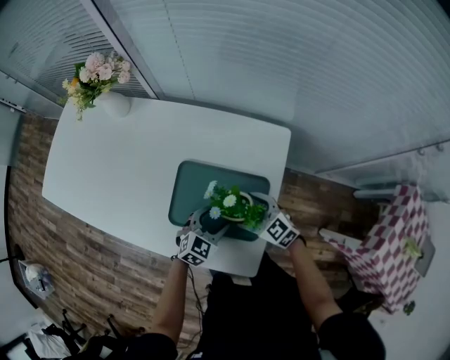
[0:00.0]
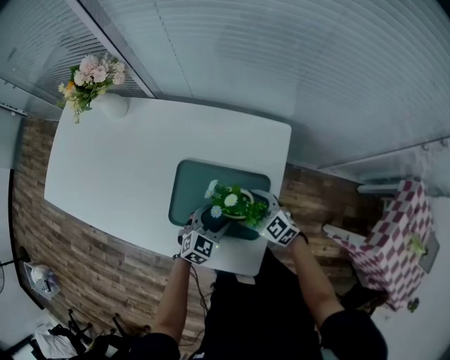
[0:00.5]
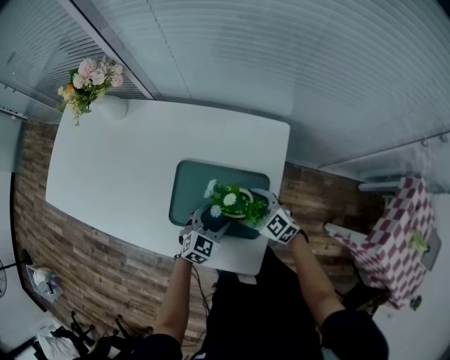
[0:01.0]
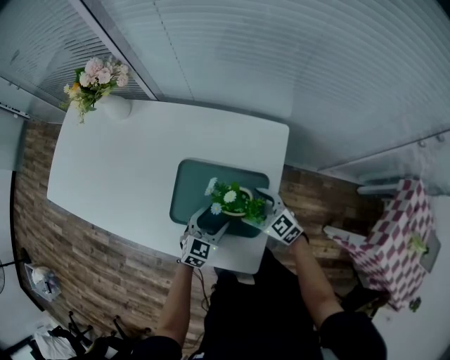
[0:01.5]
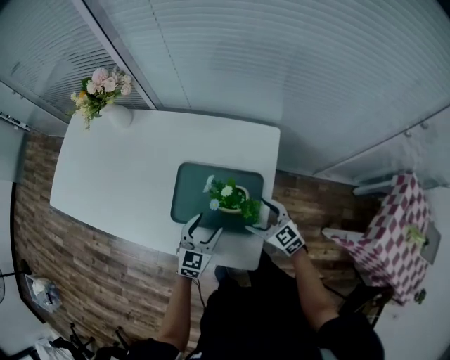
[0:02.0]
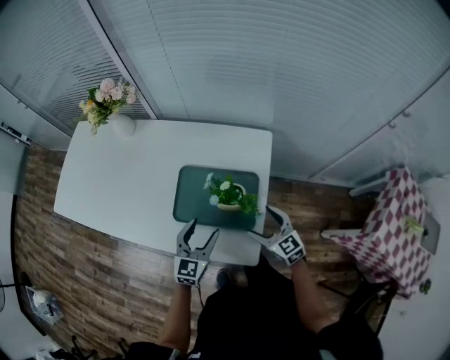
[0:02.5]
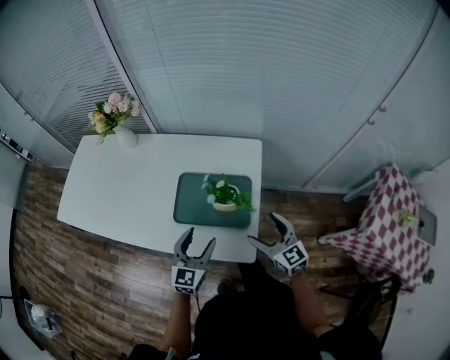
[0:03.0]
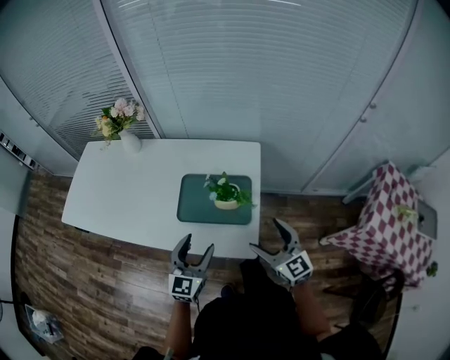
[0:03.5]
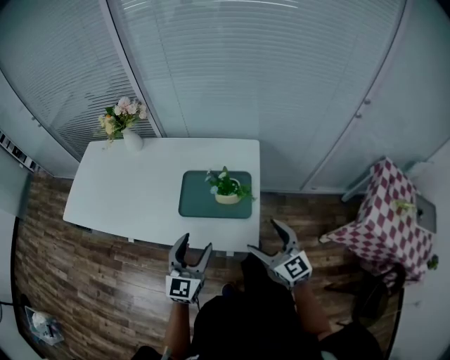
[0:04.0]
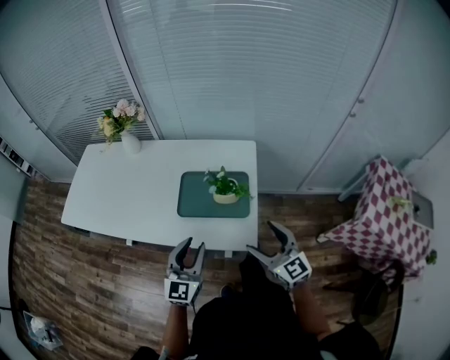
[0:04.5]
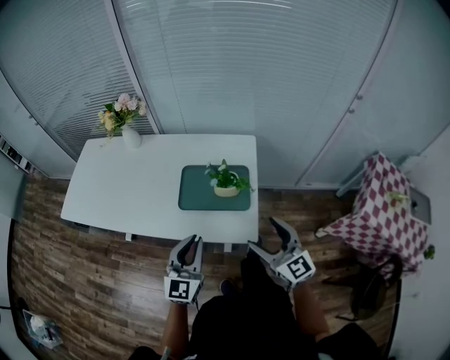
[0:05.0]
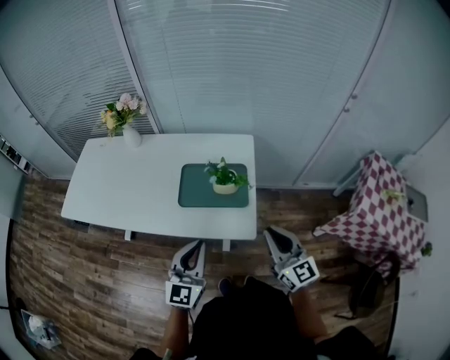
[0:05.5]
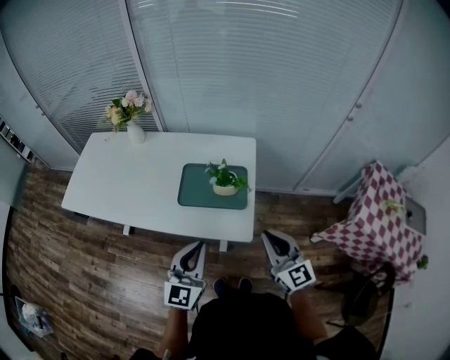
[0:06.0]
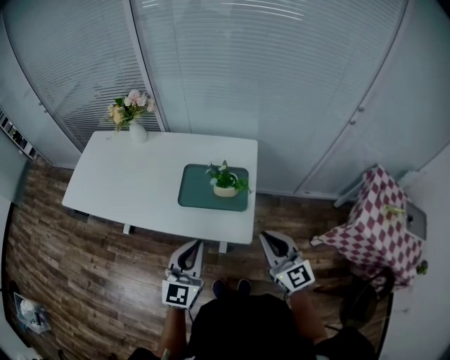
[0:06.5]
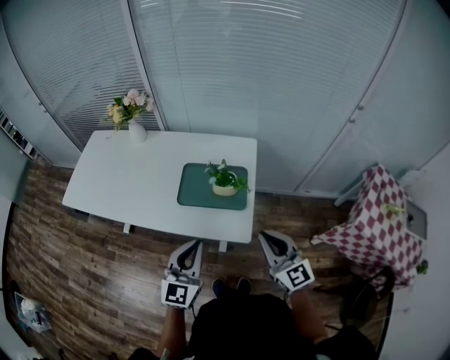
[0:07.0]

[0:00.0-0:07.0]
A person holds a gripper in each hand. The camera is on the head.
0:00.0 to 0:02.0: The left gripper moves approximately 5 cm; the right gripper changes place by approximately 5 cm.
0:02.0 to 0:03.5: The grippers both shift upward and backward by about 20 cm. The right gripper rotates approximately 30 degrees.
0:03.5 to 0:05.0: The left gripper moves upward and backward, about 10 cm, and closes up. The right gripper is displaced backward by about 5 cm.
0:05.0 to 0:07.0: The right gripper closes; the left gripper ends up about 5 cm from where it was.

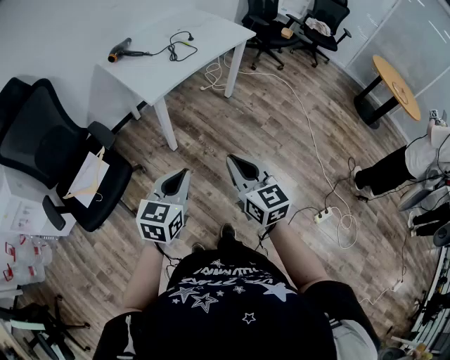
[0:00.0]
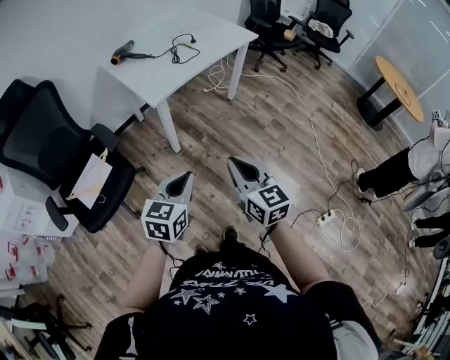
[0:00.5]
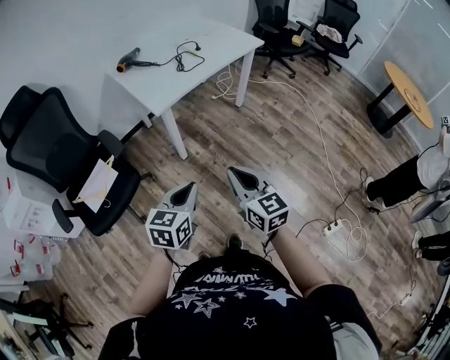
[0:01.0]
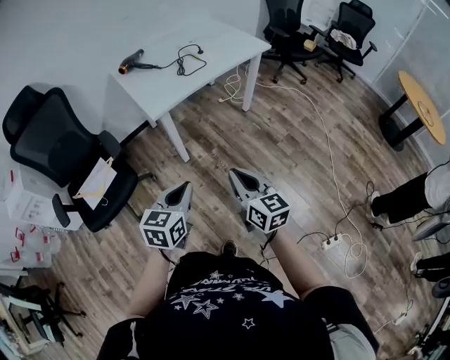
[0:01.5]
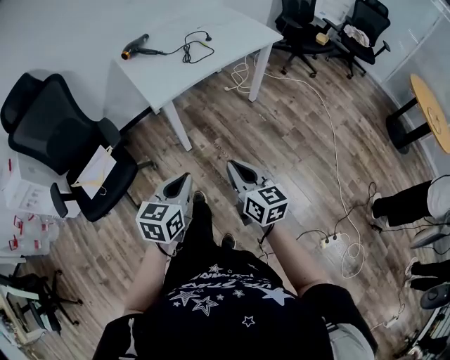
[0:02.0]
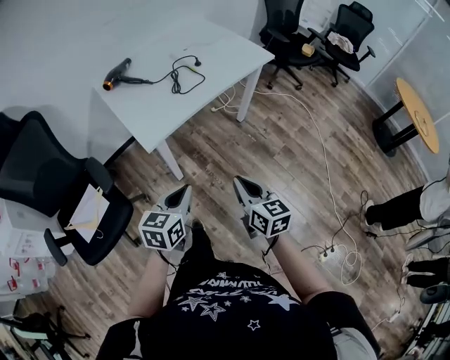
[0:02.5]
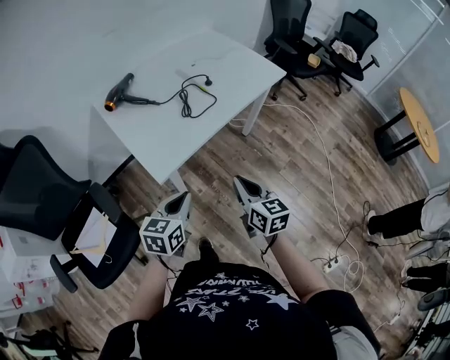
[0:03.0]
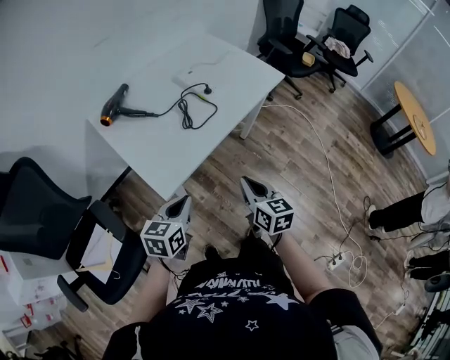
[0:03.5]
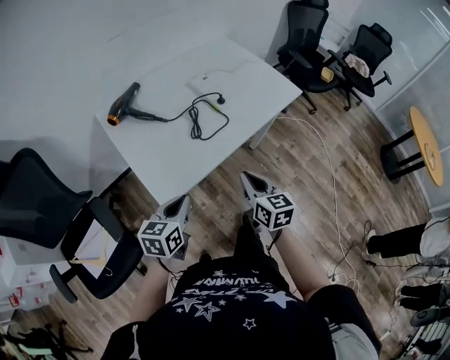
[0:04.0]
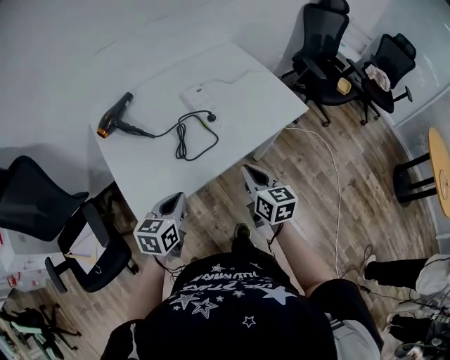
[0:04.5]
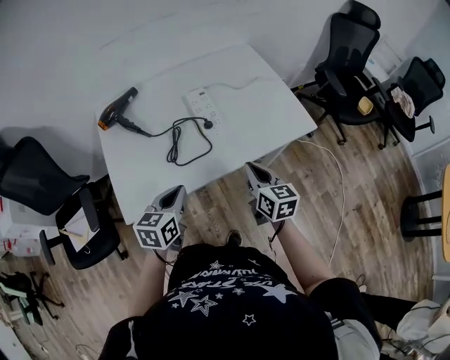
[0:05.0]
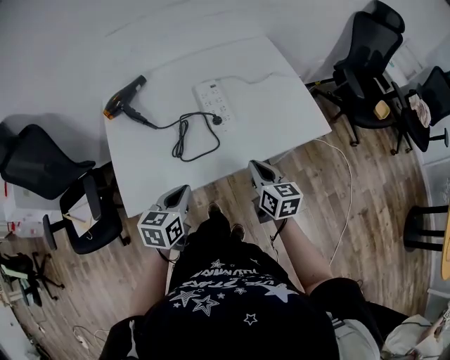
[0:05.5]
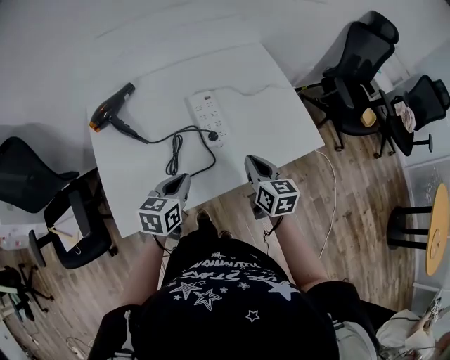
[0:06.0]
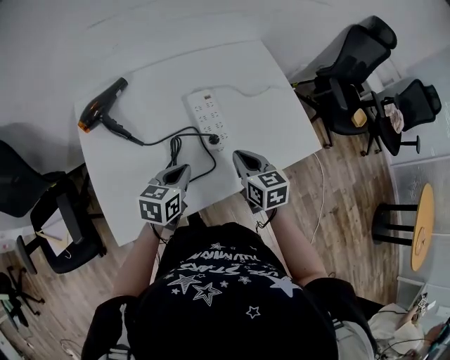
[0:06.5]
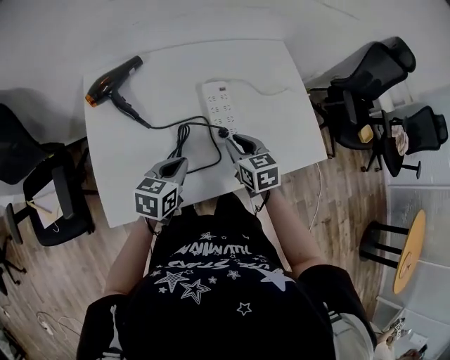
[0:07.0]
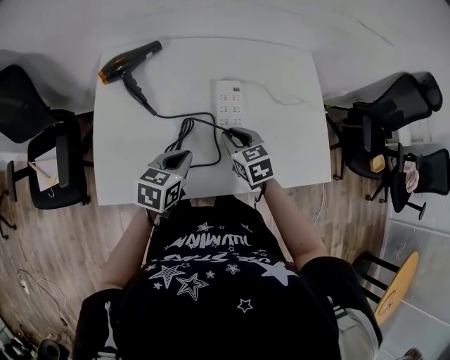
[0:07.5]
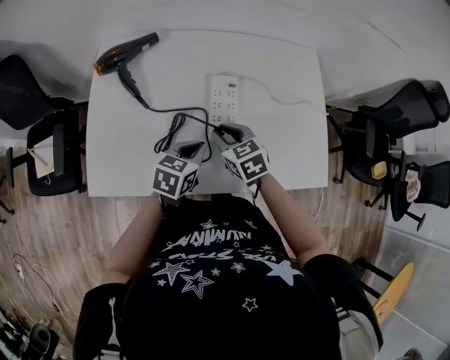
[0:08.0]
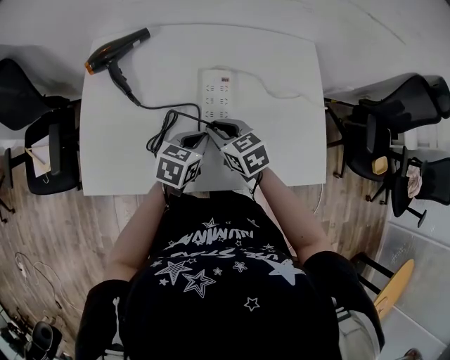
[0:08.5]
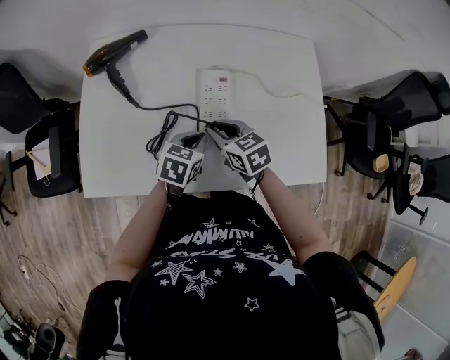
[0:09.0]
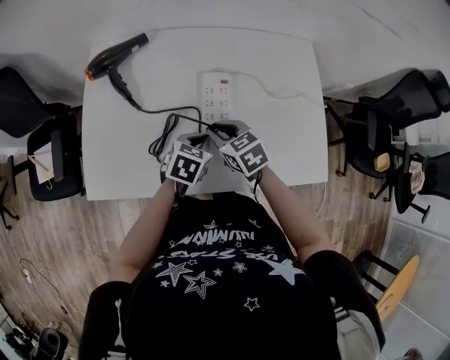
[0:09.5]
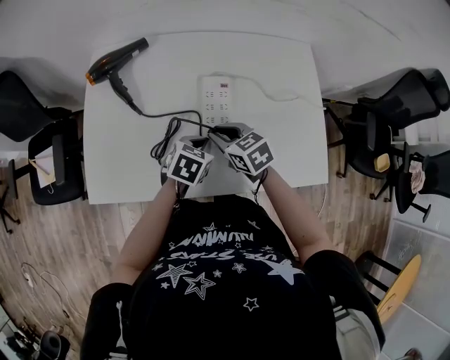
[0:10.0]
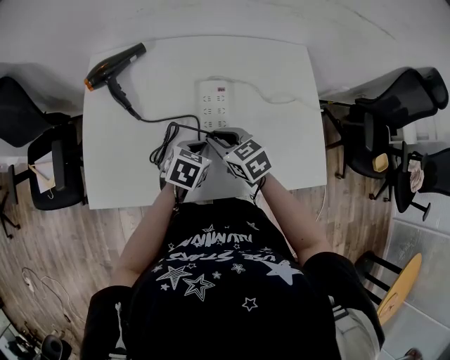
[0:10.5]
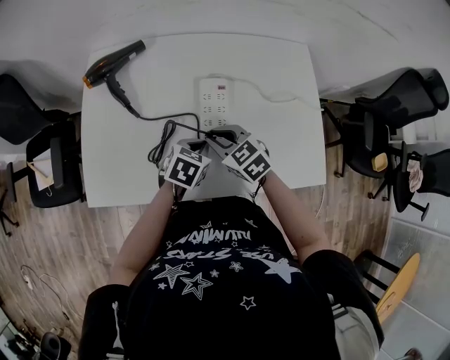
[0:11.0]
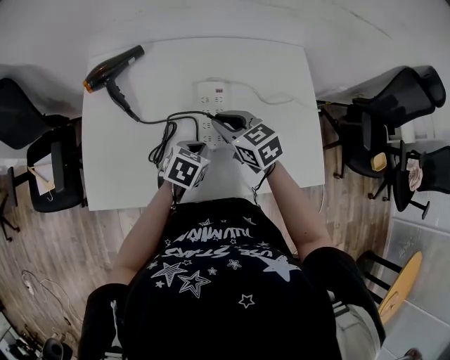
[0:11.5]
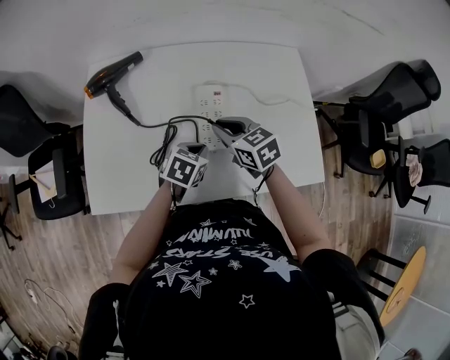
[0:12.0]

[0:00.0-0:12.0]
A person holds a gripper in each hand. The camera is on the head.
0:00.0 to 0:02.0: The left gripper moves forward and to the right, about 10 cm, while the right gripper heads forward, downward and to the right, covering roughly 15 cm.
0:02.0 to 0:04.0: Both grippers move forward, about 40 cm.
0:04.0 to 0:06.0: Both grippers move forward and to the right, approximately 30 cm.
0:06.0 to 0:08.0: The right gripper shifts some 15 cm forward, to the left and downward, changes its angle by about 50 degrees, and opens. The left gripper travels forward, to the right and downward by about 10 cm.
0:08.0 to 0:10.0: The left gripper shifts by roughly 5 cm.
0:10.0 to 0:12.0: The right gripper is displaced upward by roughly 5 cm.

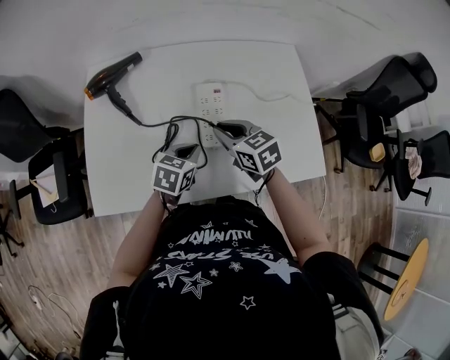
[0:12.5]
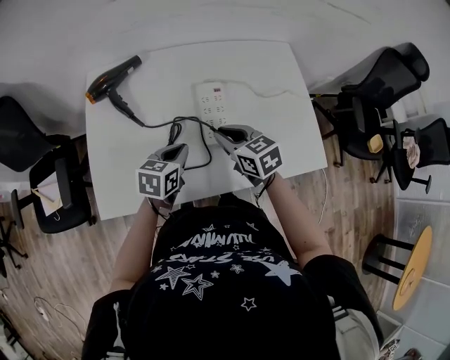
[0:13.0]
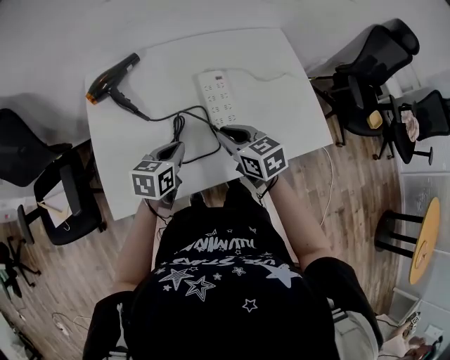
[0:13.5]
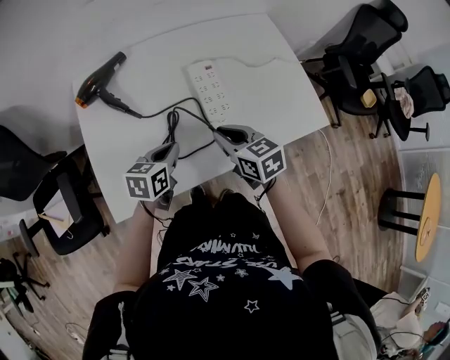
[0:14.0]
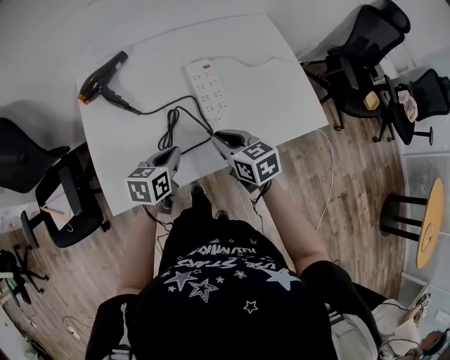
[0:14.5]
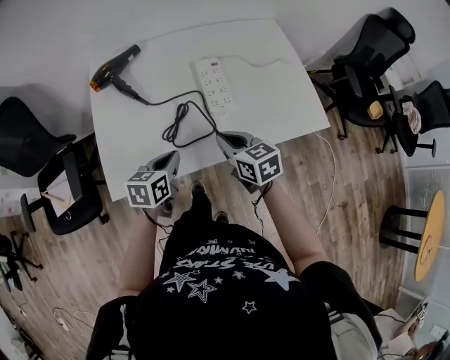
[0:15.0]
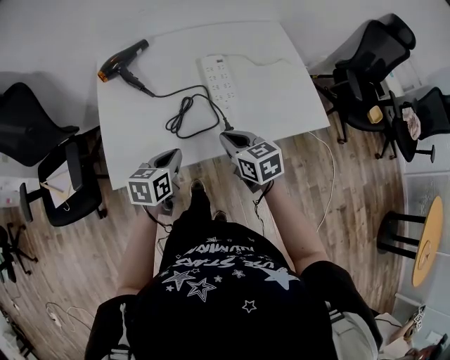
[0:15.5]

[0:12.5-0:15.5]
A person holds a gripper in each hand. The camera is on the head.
0:12.5 to 0:14.0: The left gripper heads to the left, covering some 10 cm. The right gripper goes some 10 cm backward.
0:14.0 to 0:15.5: The two grippers go approximately 10 cm backward.

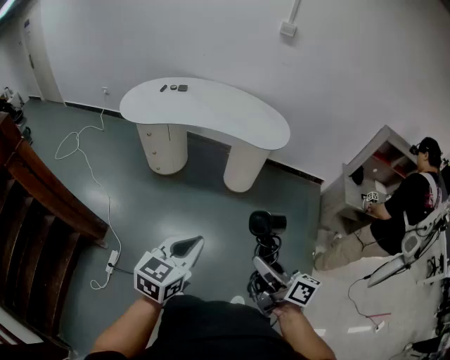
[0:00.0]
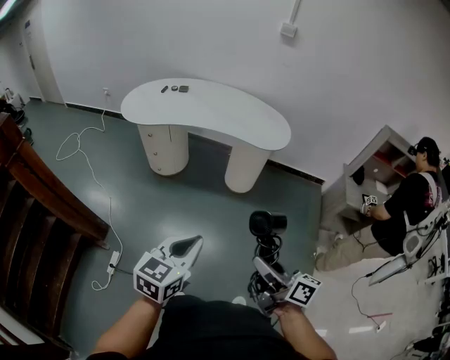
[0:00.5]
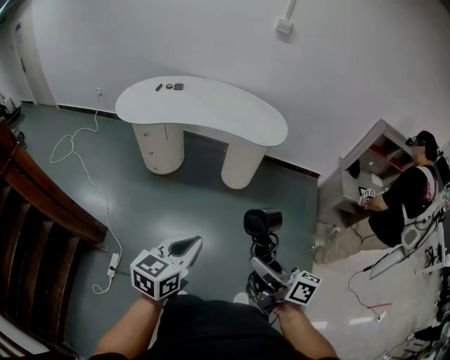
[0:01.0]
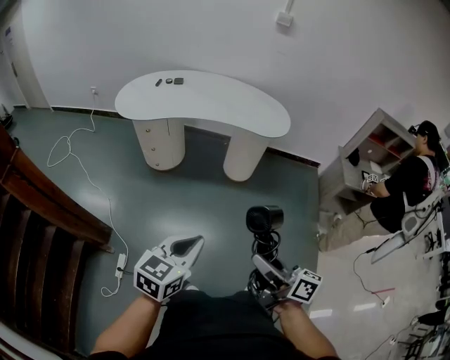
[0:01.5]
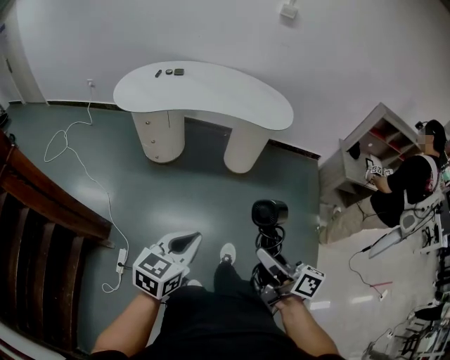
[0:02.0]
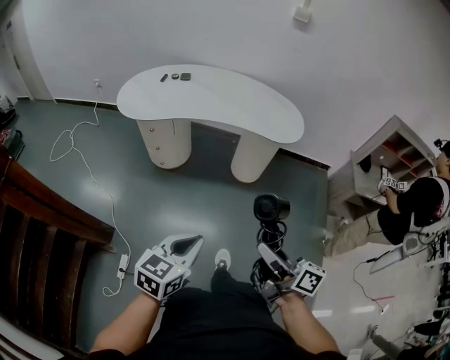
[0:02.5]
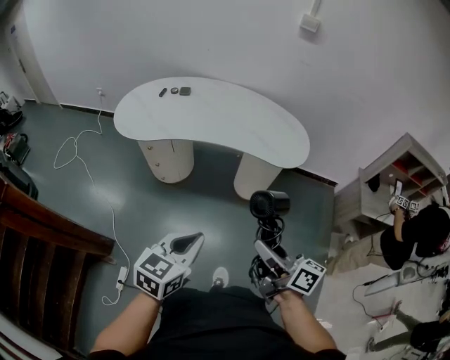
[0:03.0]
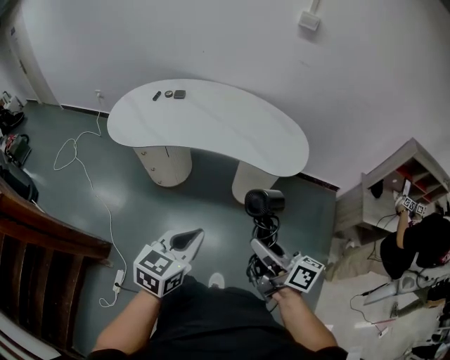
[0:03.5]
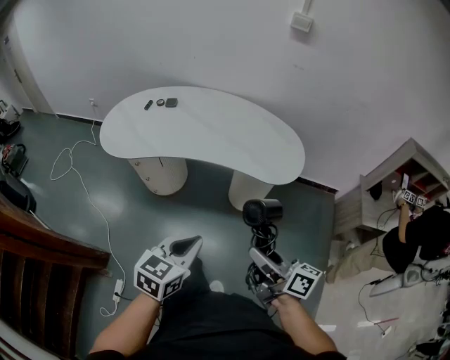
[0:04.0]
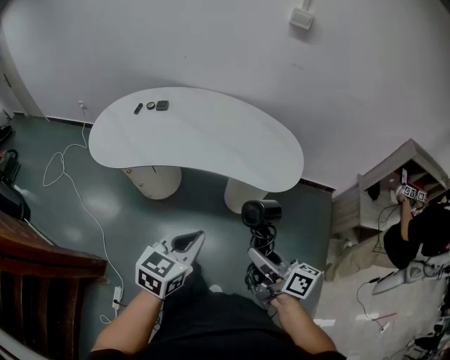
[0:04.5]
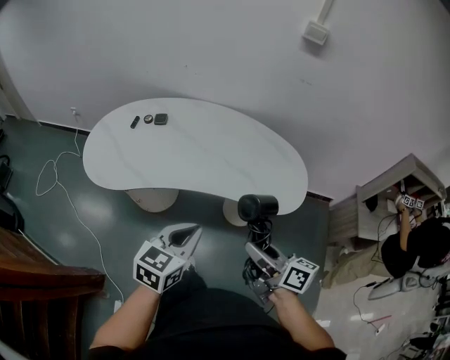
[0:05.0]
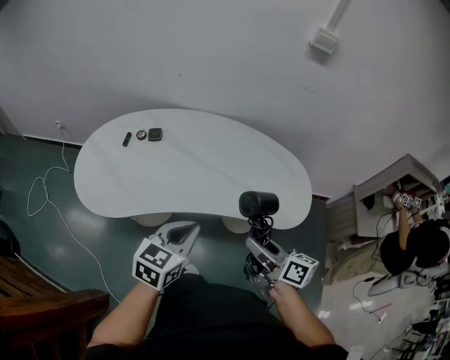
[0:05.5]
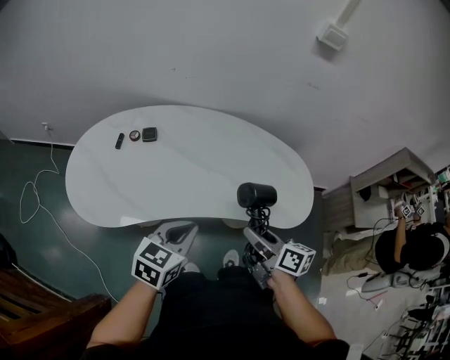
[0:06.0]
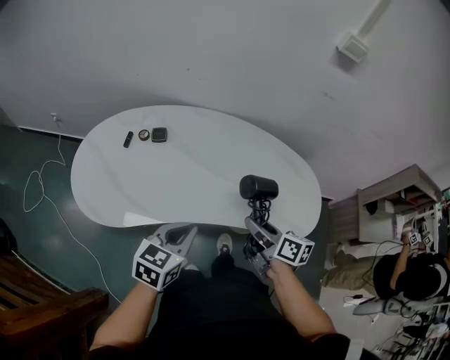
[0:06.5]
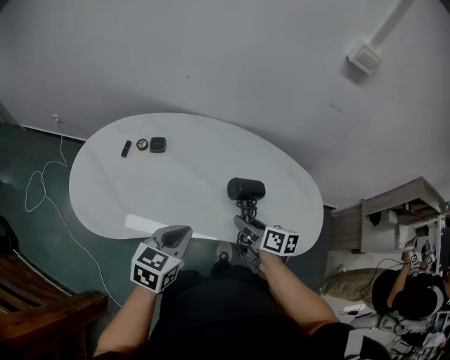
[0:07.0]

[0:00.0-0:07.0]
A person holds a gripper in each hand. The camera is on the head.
0:00.0 to 0:02.0: Both grippers move to the left, about 10 cm.
0:02.0 to 0:03.5: Both grippers travel together forward, approximately 30 cm.
0:03.5 to 0:05.0: Both grippers travel together forward, roughly 20 cm.
0:05.0 to 0:07.0: The right gripper shifts some 30 cm forward, and rotates approximately 20 degrees, while the left gripper shifts about 25 cm forward and to the left.
